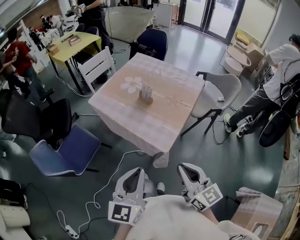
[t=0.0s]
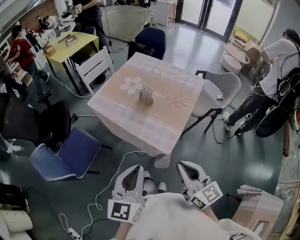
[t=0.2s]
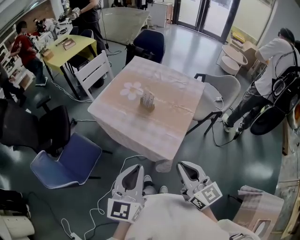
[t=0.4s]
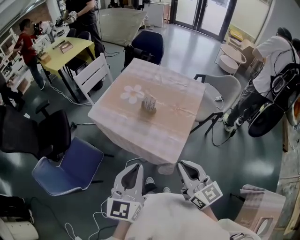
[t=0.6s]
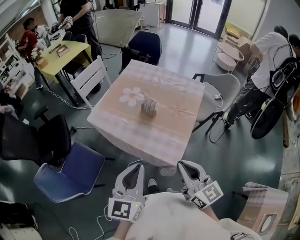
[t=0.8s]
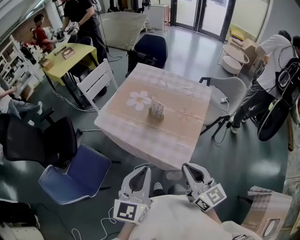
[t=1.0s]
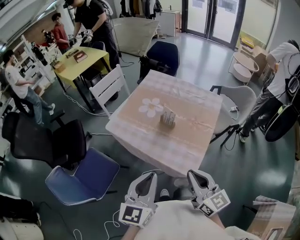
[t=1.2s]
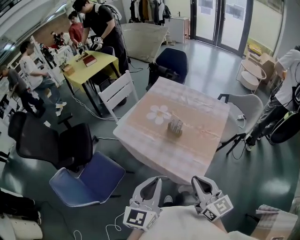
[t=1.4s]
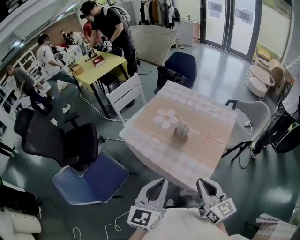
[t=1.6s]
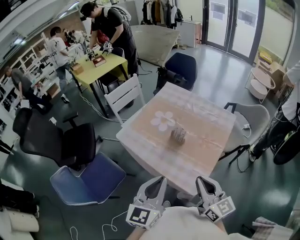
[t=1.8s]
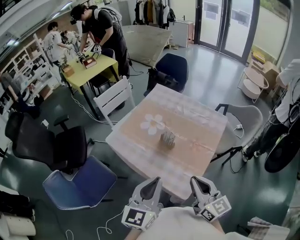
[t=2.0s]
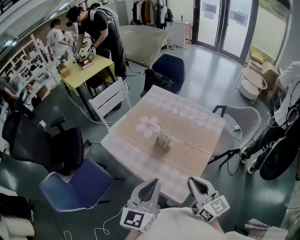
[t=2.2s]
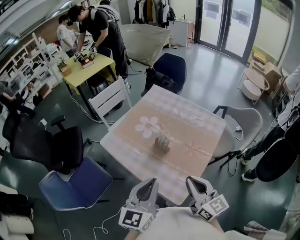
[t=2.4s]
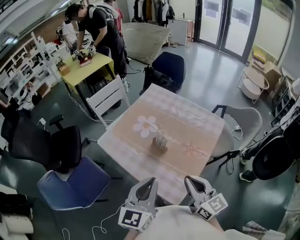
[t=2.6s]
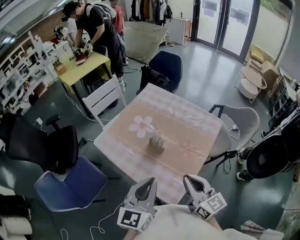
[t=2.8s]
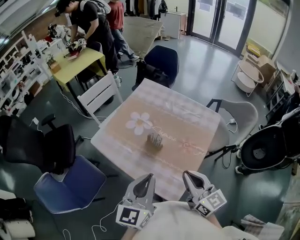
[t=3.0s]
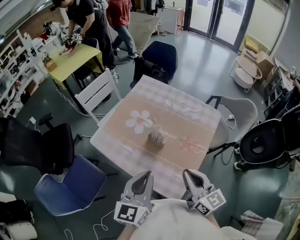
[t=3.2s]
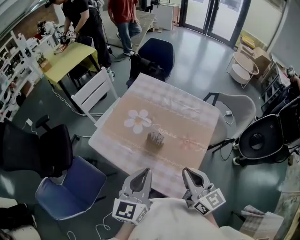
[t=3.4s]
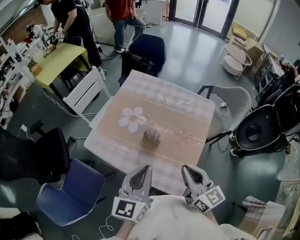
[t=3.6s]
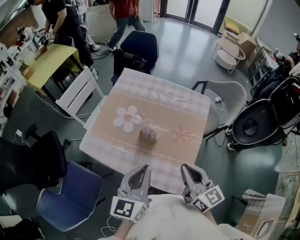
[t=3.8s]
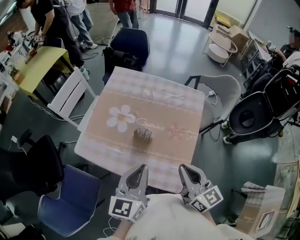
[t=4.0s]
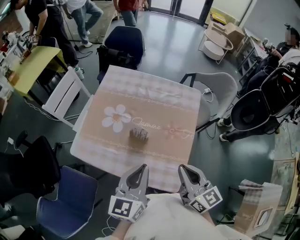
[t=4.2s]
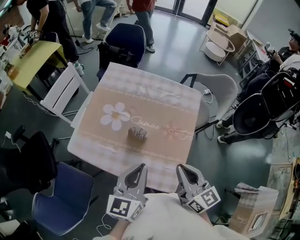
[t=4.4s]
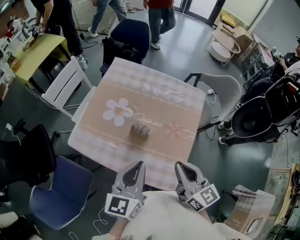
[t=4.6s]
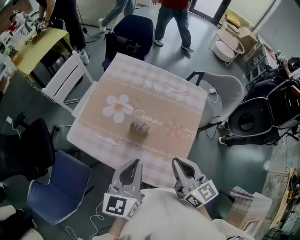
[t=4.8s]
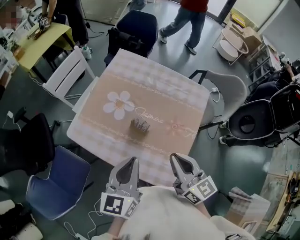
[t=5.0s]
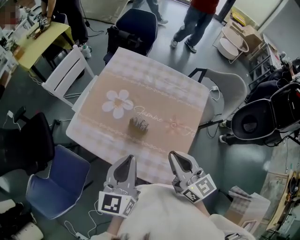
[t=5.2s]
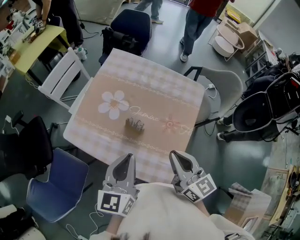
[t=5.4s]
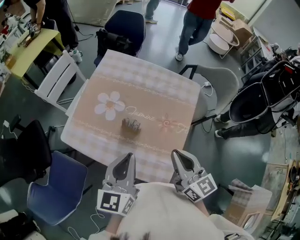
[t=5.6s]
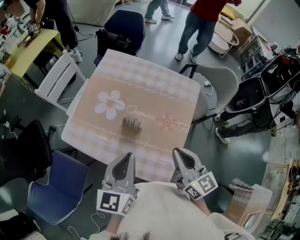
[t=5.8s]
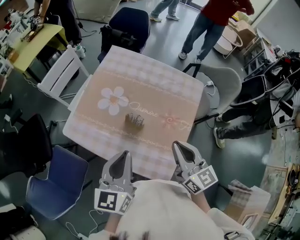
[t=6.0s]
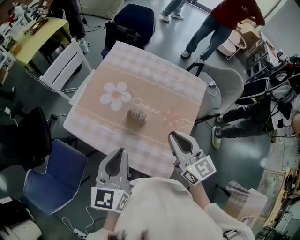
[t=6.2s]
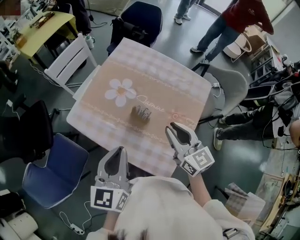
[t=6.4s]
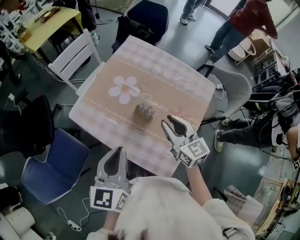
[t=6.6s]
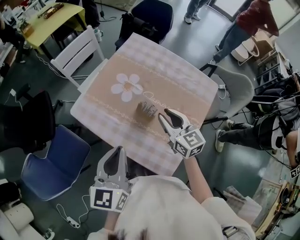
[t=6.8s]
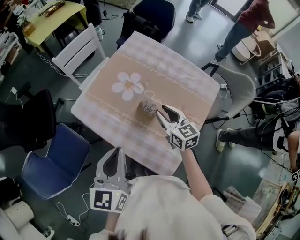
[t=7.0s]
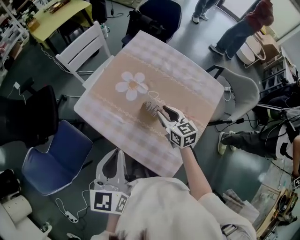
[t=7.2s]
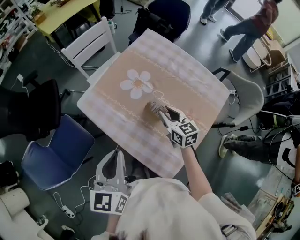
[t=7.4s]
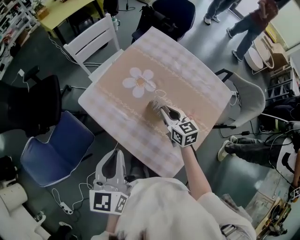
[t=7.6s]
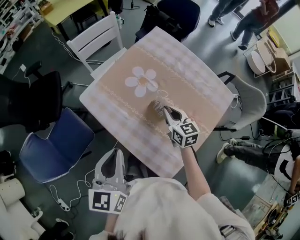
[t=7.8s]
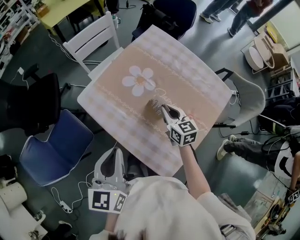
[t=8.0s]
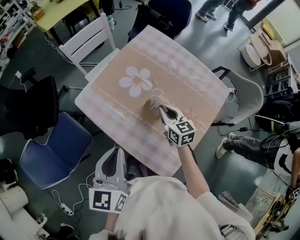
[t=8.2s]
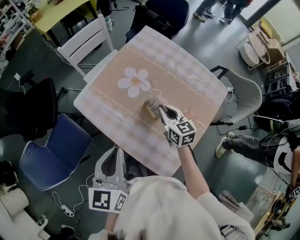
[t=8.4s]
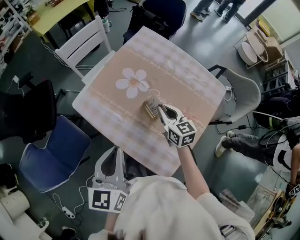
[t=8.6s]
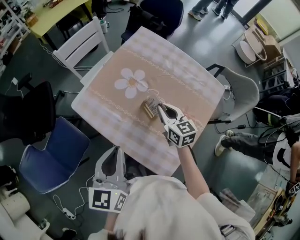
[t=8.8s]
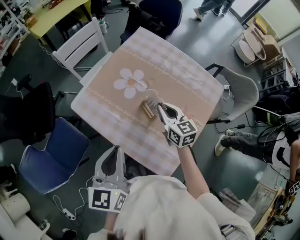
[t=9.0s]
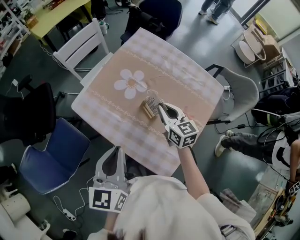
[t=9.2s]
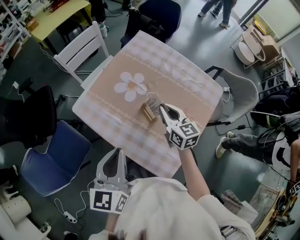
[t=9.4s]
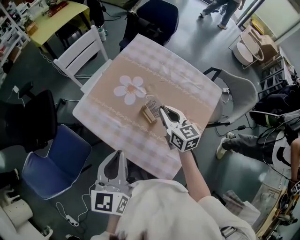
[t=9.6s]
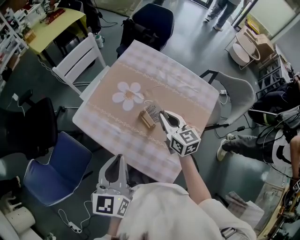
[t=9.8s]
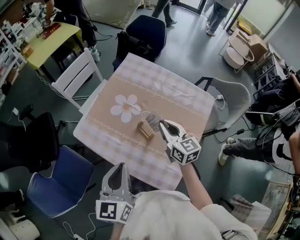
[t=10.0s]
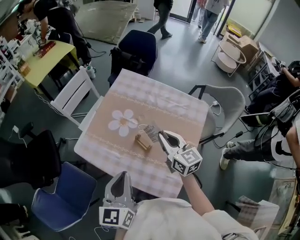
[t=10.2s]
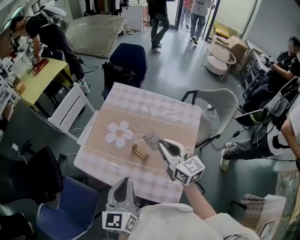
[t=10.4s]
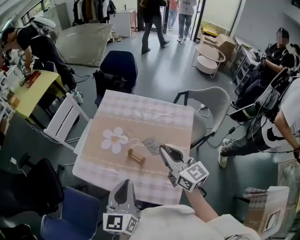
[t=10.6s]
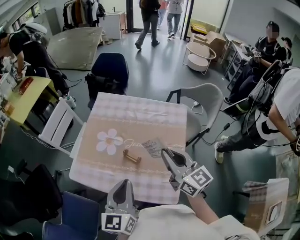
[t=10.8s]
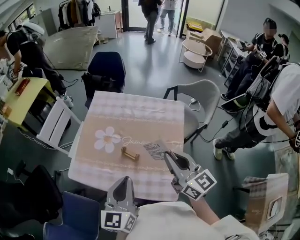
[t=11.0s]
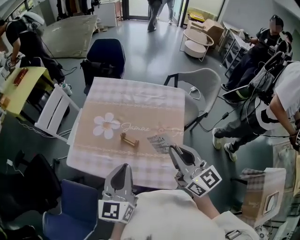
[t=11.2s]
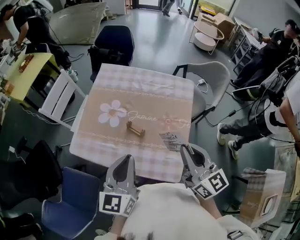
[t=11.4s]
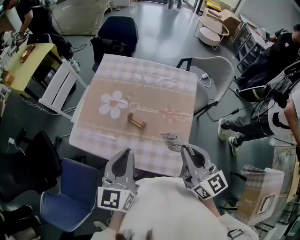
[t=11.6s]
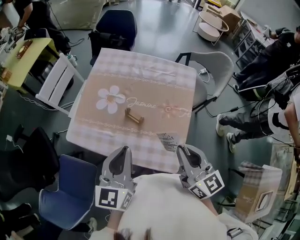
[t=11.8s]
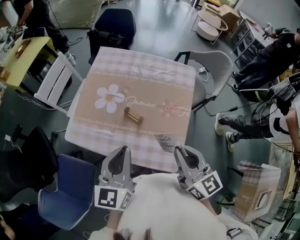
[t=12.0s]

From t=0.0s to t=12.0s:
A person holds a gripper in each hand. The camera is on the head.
From t=0.0s to t=1.6s: The grippers both shift forward and to the left by roughly 15 cm.
From t=1.6s to t=3.0s: Both grippers move forward and to the right, some 15 cm.
From t=3.0s to t=4.4s: The left gripper is displaced forward by some 5 cm.
From t=4.4s to t=6.0s: The right gripper is displaced forward by roughly 5 cm.
From t=6.0s to t=7.6s: The right gripper shifts some 25 cm downward, forward and to the left, and turns by some 30 degrees. Meanwhile the left gripper is displaced to the left by some 10 cm, and changes its angle by roughly 20 degrees.
From t=7.6s to t=9.0s: There are only small adjustments of the grippers.
From t=9.0s to t=10.4s: The right gripper moves upward, some 15 cm. Meanwhile the left gripper shifts about 5 cm to the right.
From t=10.4s to t=12.0s: The right gripper heads backward, covering about 15 cm.

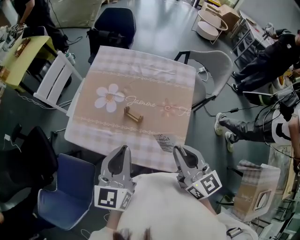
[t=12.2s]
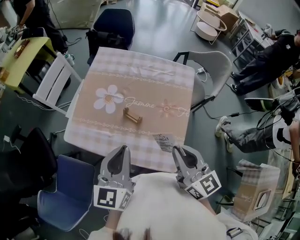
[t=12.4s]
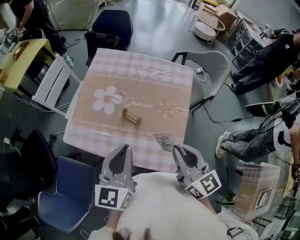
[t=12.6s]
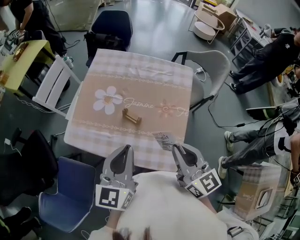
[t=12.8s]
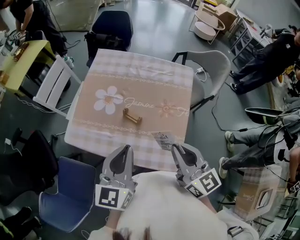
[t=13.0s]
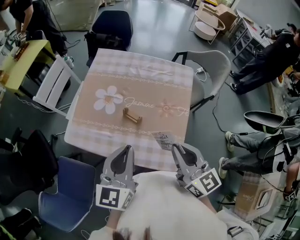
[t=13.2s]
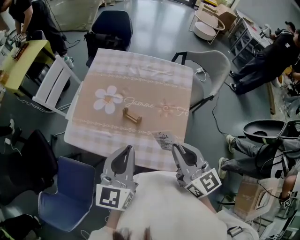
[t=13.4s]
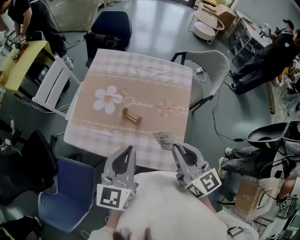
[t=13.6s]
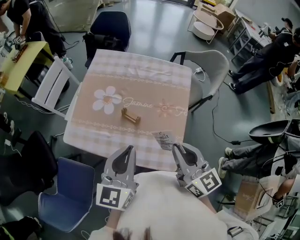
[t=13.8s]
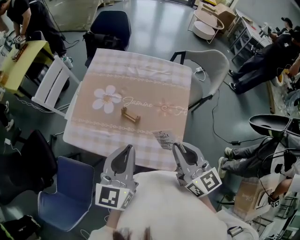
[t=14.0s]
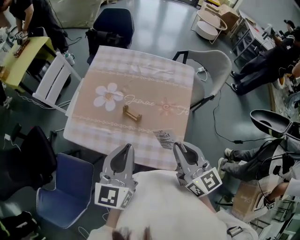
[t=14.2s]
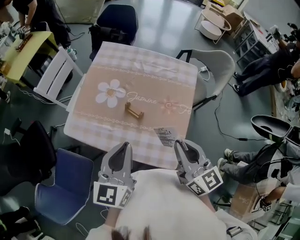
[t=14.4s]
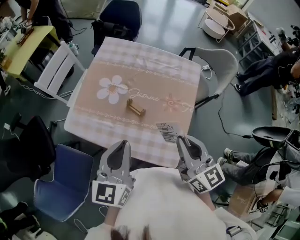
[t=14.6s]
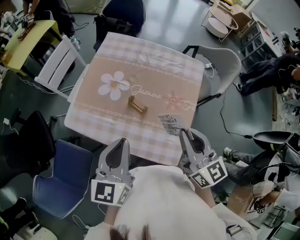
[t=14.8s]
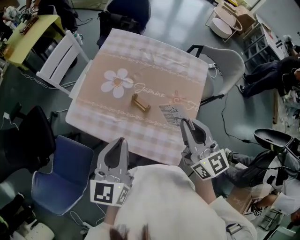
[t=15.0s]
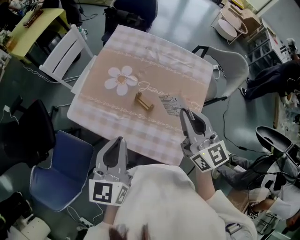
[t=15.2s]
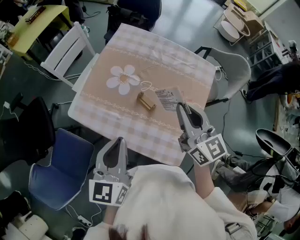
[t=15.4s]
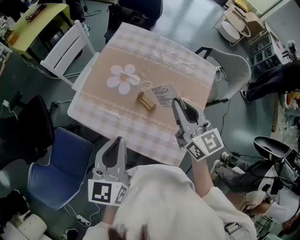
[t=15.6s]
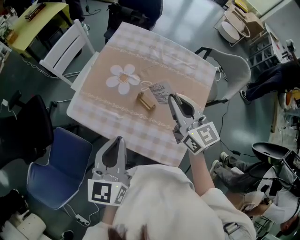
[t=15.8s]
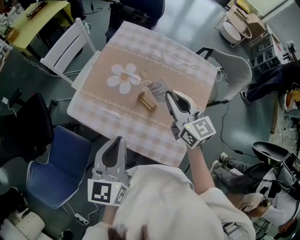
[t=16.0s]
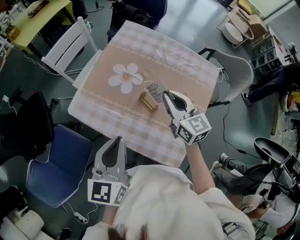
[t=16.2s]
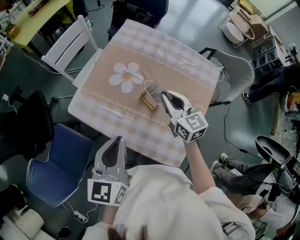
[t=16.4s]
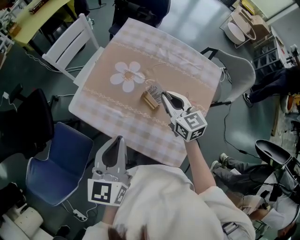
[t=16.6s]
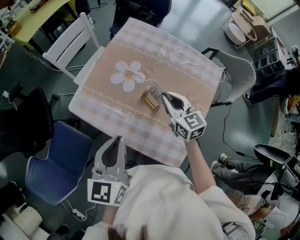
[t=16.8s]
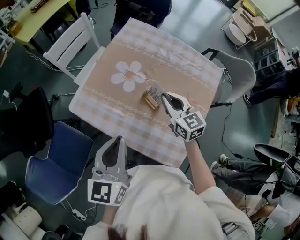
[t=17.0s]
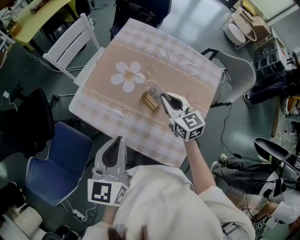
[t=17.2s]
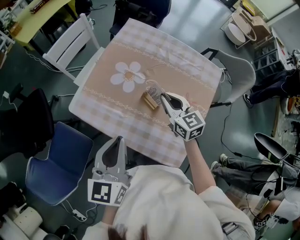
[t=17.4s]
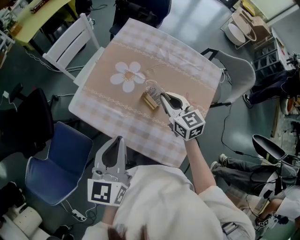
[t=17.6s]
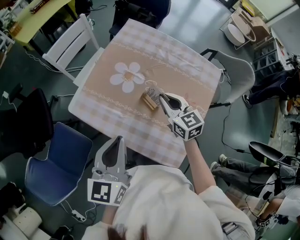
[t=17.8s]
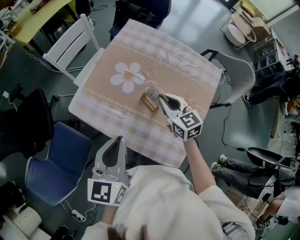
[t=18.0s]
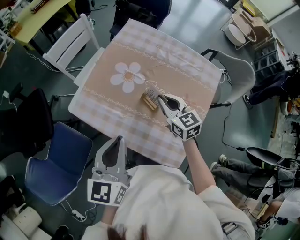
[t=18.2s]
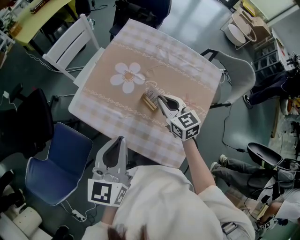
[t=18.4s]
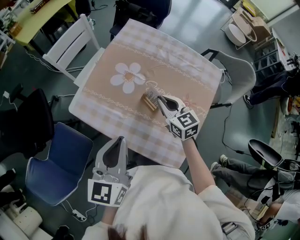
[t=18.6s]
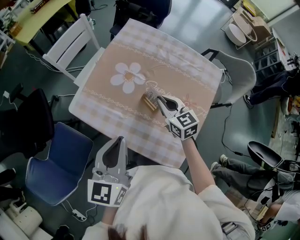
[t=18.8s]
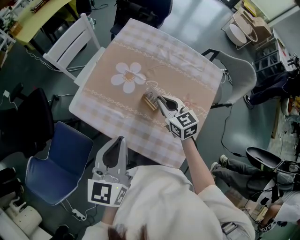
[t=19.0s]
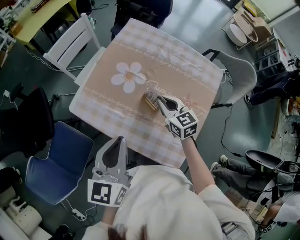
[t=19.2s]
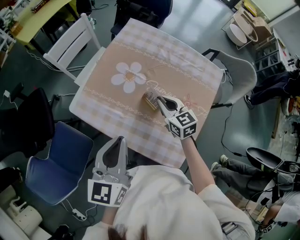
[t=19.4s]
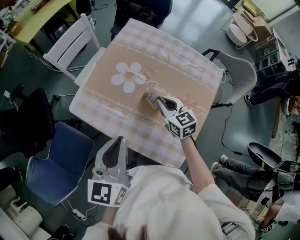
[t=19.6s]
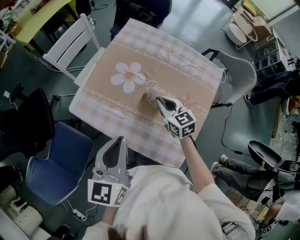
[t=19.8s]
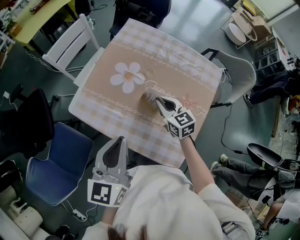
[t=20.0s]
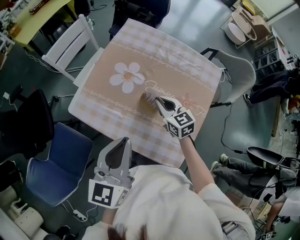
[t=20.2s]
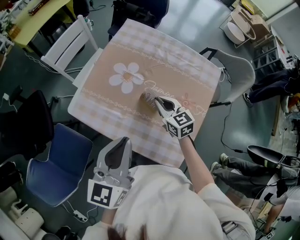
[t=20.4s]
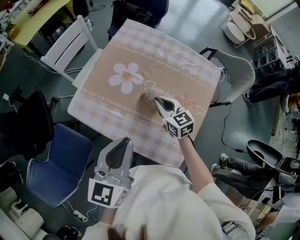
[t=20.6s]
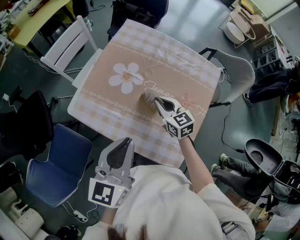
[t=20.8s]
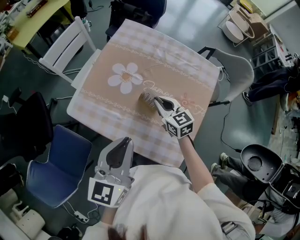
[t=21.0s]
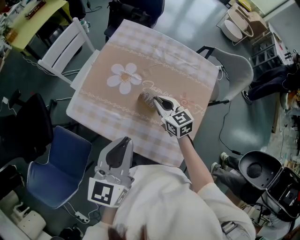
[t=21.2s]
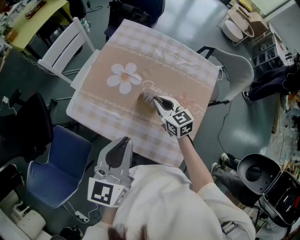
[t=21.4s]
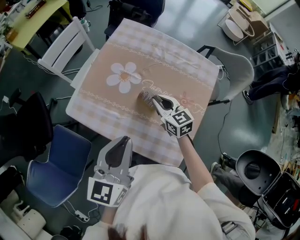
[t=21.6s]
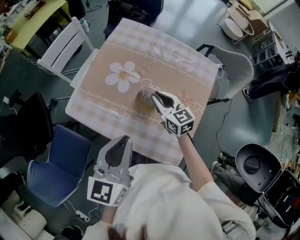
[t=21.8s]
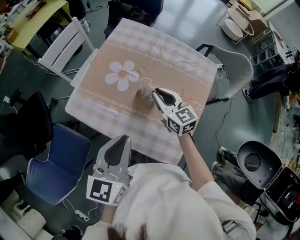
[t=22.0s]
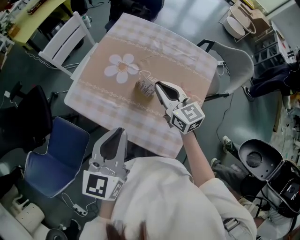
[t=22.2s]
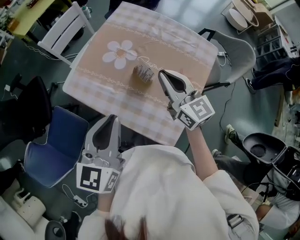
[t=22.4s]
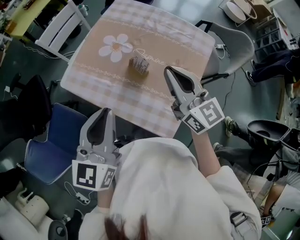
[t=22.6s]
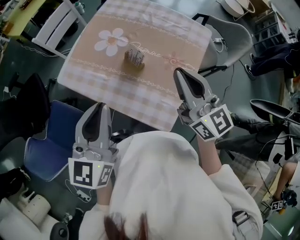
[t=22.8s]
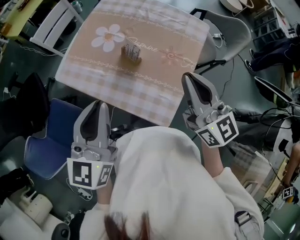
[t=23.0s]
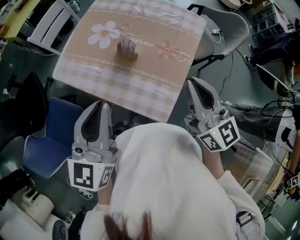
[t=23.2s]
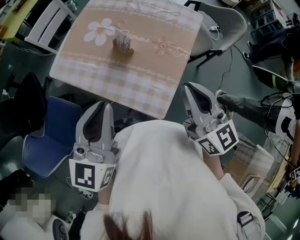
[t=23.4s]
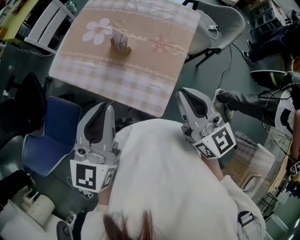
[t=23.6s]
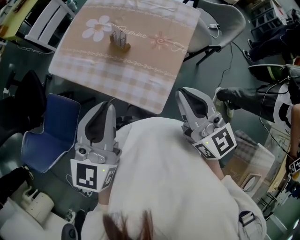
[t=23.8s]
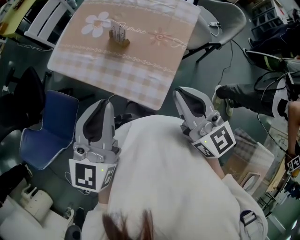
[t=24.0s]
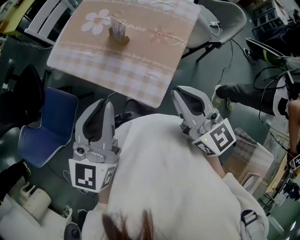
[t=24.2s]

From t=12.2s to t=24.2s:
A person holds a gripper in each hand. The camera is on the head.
From t=12.2s to t=13.8s: The grippers move only a little.
From t=13.8s to t=15.2s: The right gripper moves forward, roughly 10 cm. Meanwhile the left gripper moves to the left, roughly 10 cm.
From t=15.2s to t=16.6s: The right gripper shifts some 15 cm downward, forward and to the left.
From t=16.6s to t=18.2s: There are only small adjustments of the grippers.
From t=18.2s to t=21.2s: The grippers stay close to where they were, moving slightly.
From t=21.2s to t=22.6s: The right gripper goes about 20 cm upward and backward, and turns by roughly 30 degrees. The left gripper moves approximately 5 cm.
From t=22.6s to t=24.2s: The right gripper moves backward, approximately 20 cm; the left gripper goes roughly 15 cm backward and to the right.
